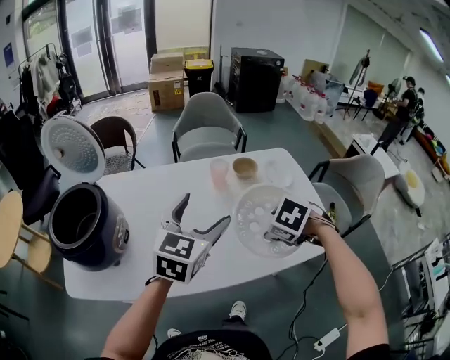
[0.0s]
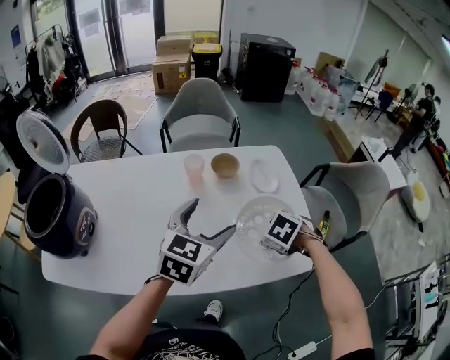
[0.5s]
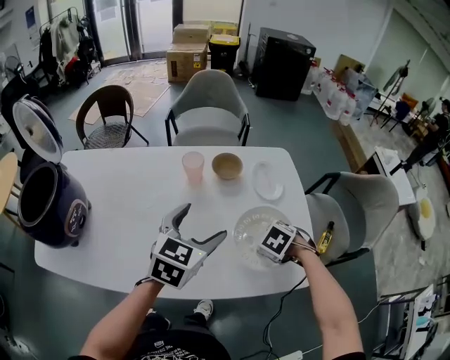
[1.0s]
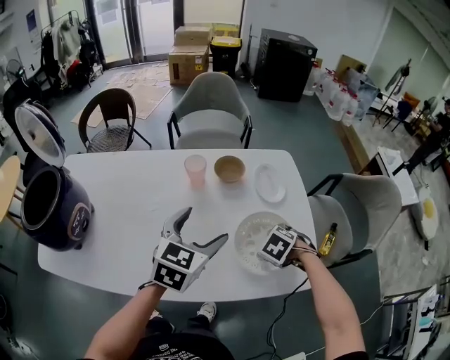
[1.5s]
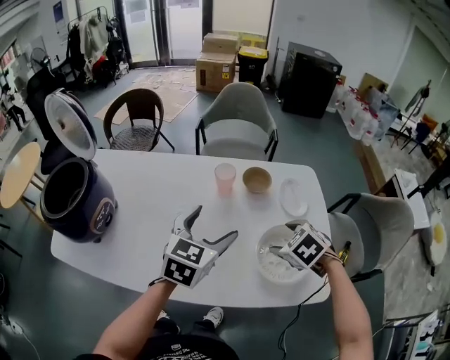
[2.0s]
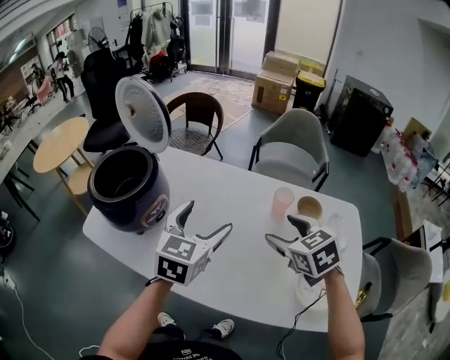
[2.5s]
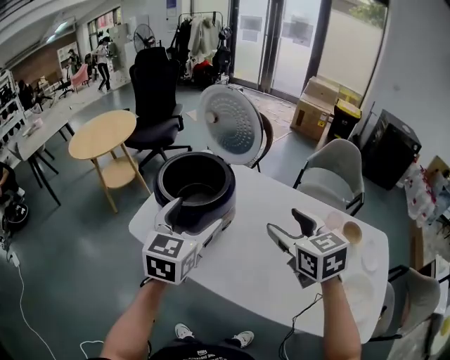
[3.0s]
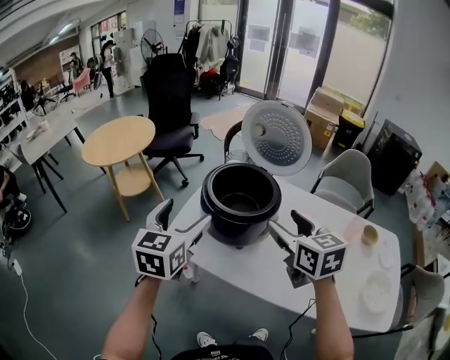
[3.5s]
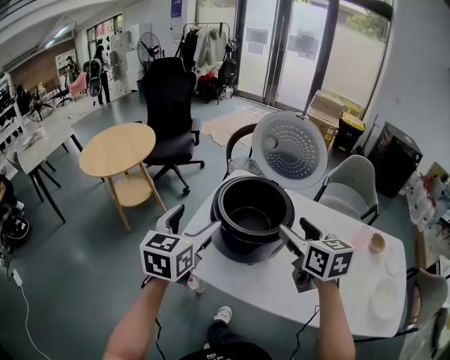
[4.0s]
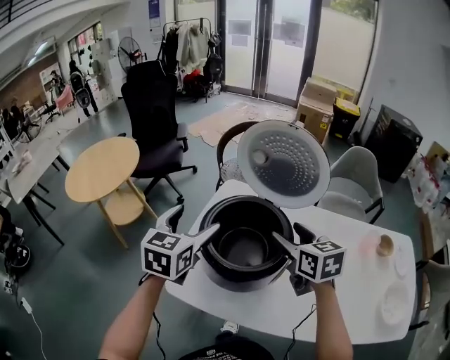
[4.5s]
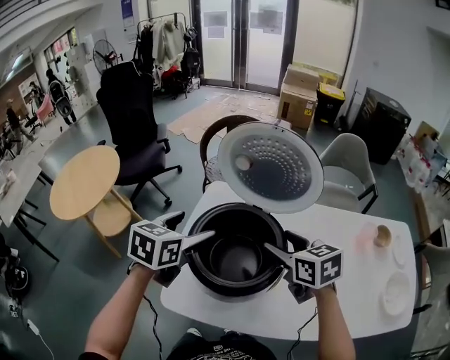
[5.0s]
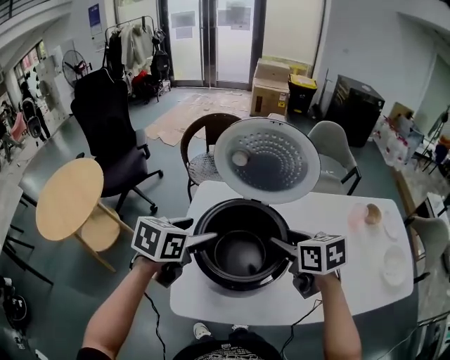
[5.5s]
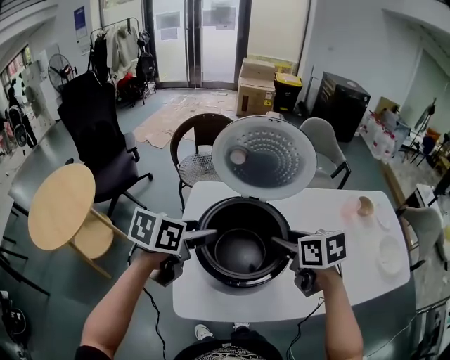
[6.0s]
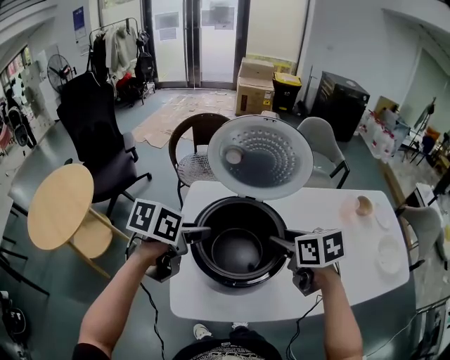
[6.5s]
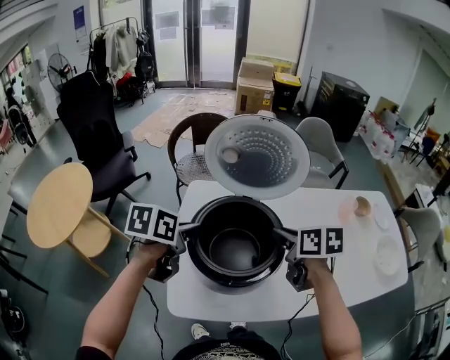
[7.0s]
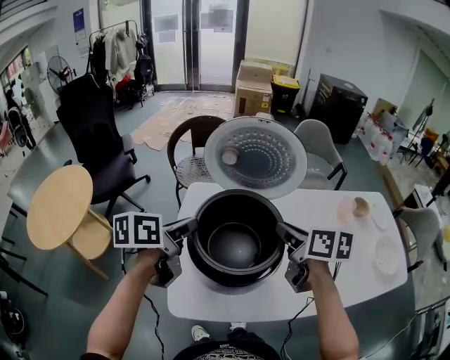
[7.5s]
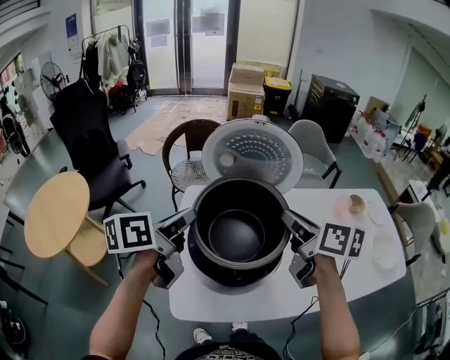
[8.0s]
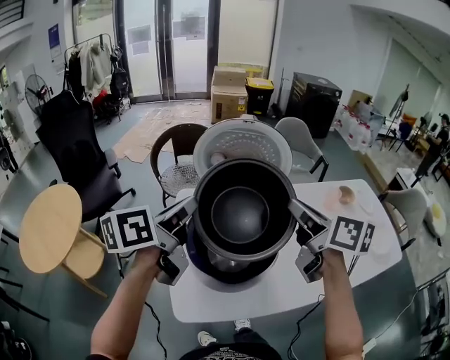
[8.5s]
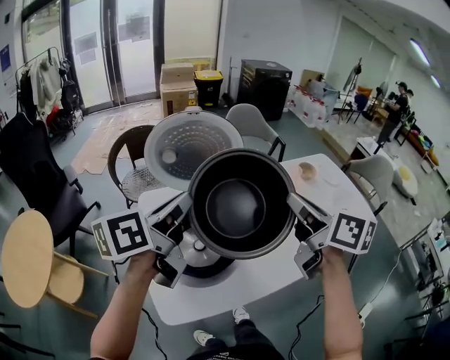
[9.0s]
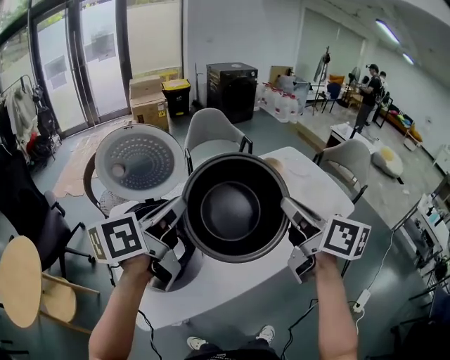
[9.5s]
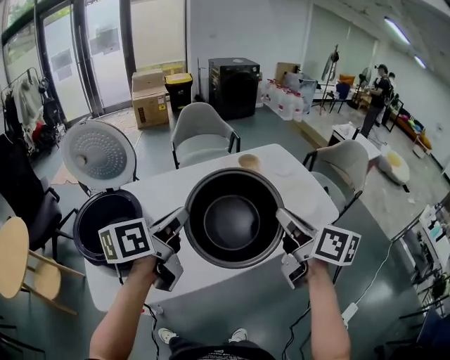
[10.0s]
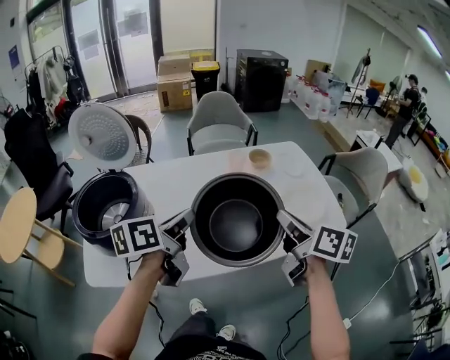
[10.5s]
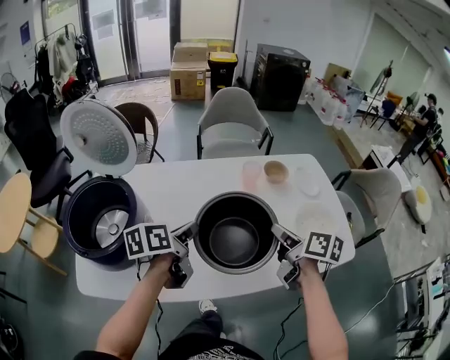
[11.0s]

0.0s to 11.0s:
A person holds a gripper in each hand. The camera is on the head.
0.0s to 2.0s: The left gripper changes place by approximately 25 cm. Meanwhile the right gripper changes place by roughly 25 cm.
2.0s to 3.5s: The pair of grippers is taken some 80 cm. The left gripper turns by some 40 degrees; the right gripper tips its fingers upward by roughly 50 degrees.
3.5s to 5.5s: The left gripper moves about 35 cm, and rotates roughly 50 degrees, while the right gripper moves about 30 cm, and turns by approximately 30 degrees.
5.5s to 7.5s: The left gripper turns by roughly 30 degrees, and closes up; the right gripper rotates some 20 degrees.
7.5s to 9.0s: The right gripper moves upward, backward and to the right, roughly 15 cm, and turns by approximately 30 degrees. Meanwhile the left gripper shifts about 15 cm upward and to the right, and turns by some 20 degrees.
9.0s to 11.0s: The pair of grippers is taken to the right, roughly 50 cm. The grippers both shift downward by approximately 25 cm. The left gripper rotates roughly 30 degrees. The right gripper rotates roughly 20 degrees.

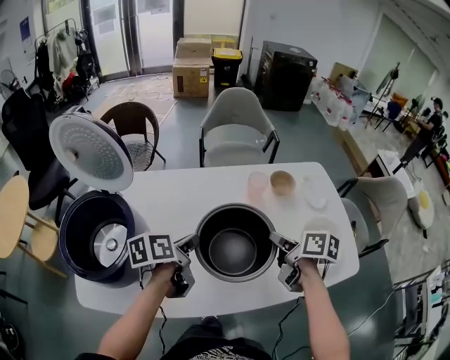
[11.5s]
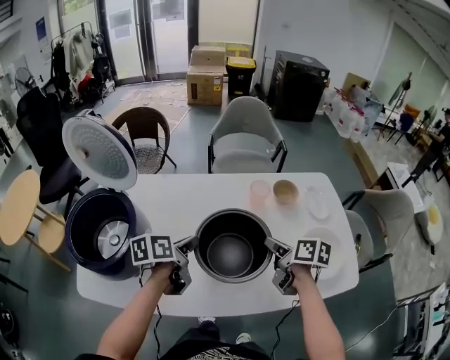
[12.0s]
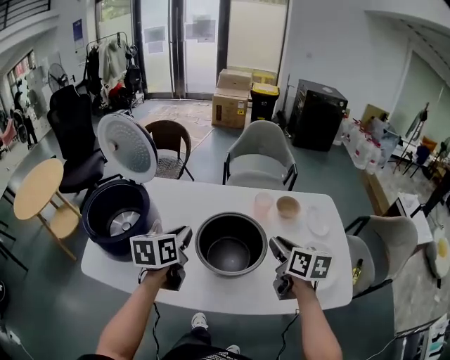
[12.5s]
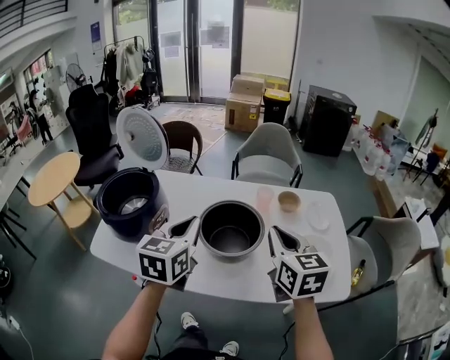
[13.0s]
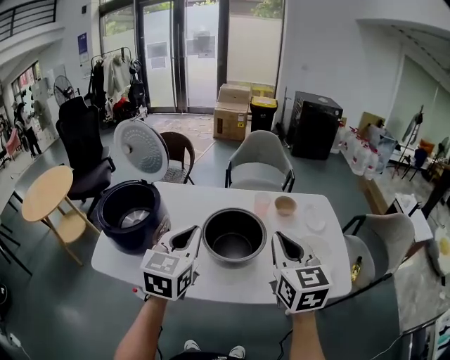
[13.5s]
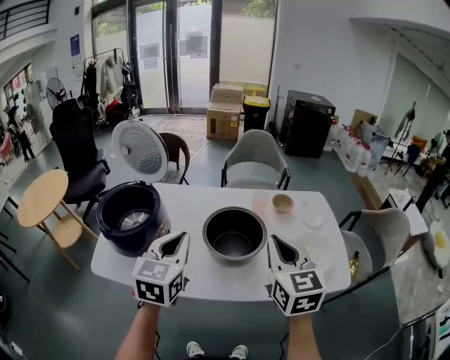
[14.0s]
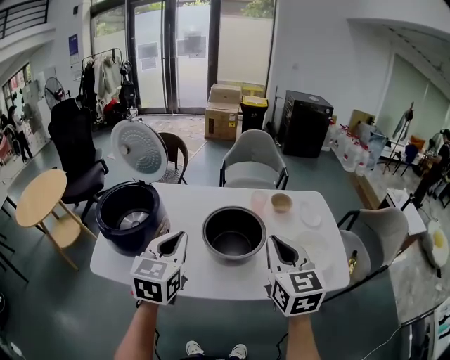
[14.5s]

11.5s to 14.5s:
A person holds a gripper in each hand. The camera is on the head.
11.5s to 13.0s: The left gripper moves backward, upward and to the right, about 30 cm, and rotates roughly 50 degrees. Meanwhile the right gripper moves backward and upward, roughly 25 cm, and rolls counterclockwise, seen from behind, by roughly 50 degrees.
13.0s to 14.5s: The right gripper goes some 10 cm to the left and backward. The left gripper is displaced to the left by some 10 cm.

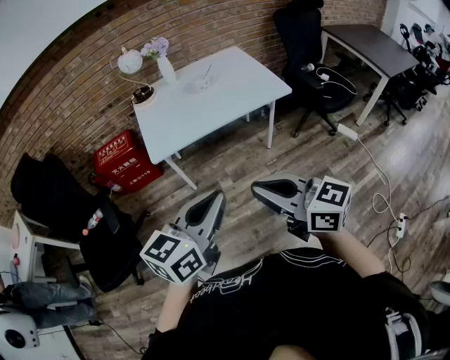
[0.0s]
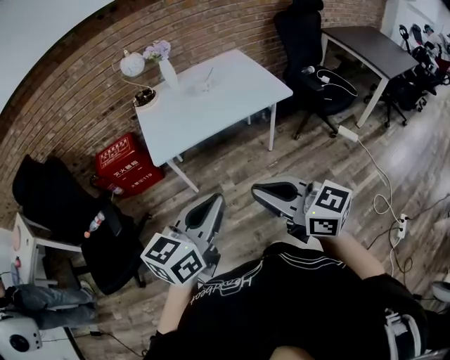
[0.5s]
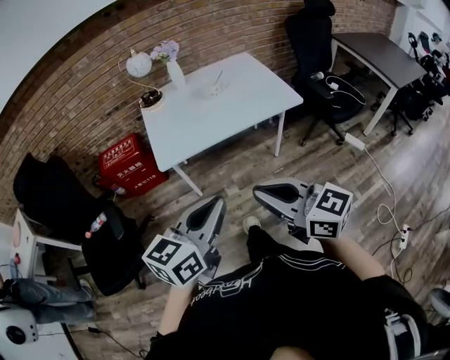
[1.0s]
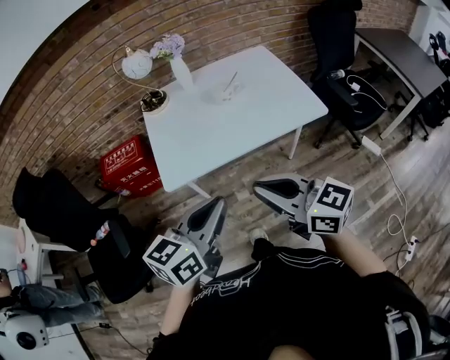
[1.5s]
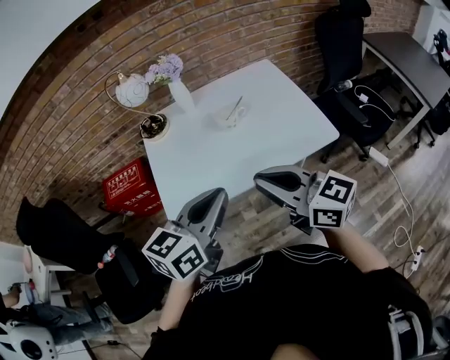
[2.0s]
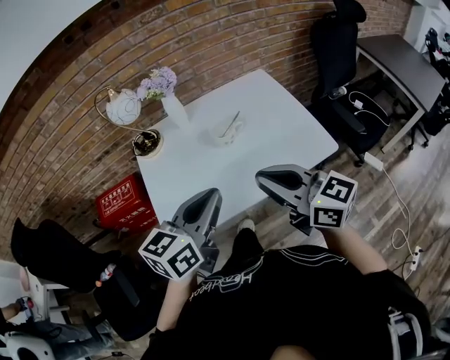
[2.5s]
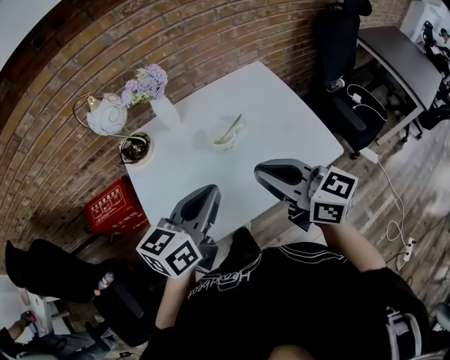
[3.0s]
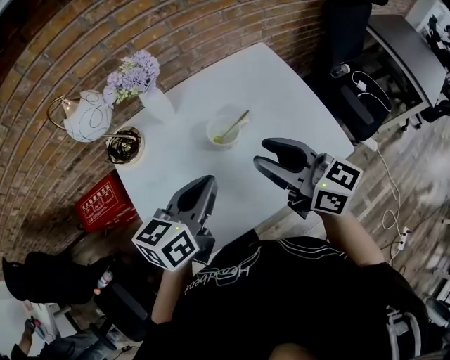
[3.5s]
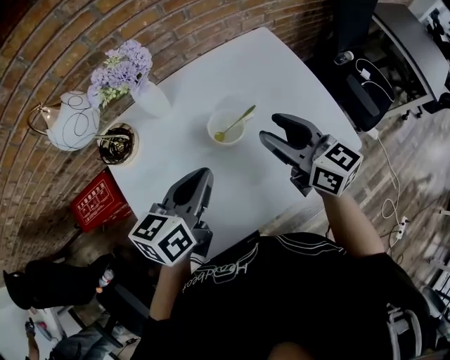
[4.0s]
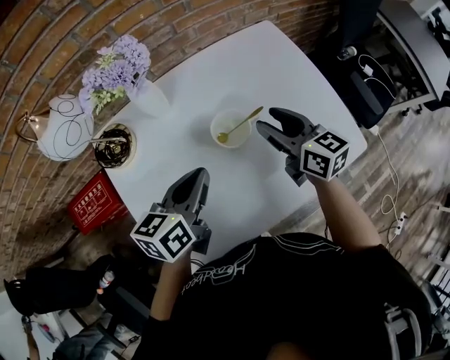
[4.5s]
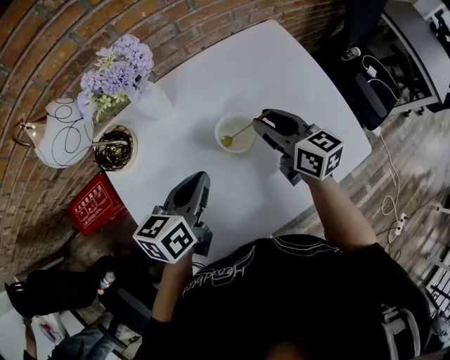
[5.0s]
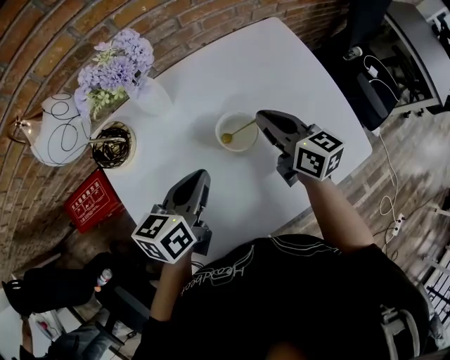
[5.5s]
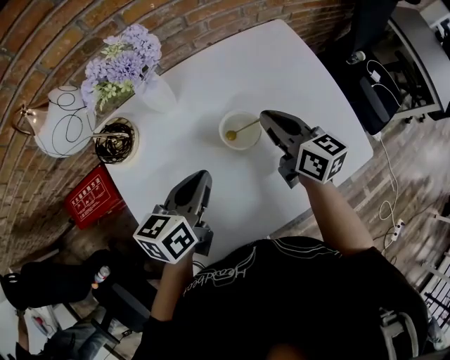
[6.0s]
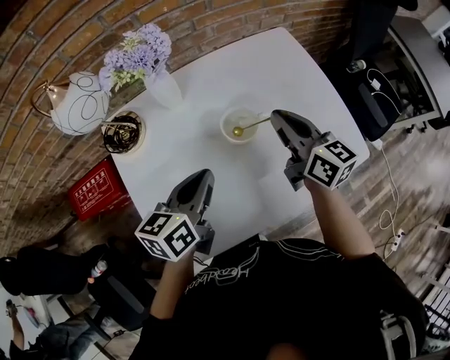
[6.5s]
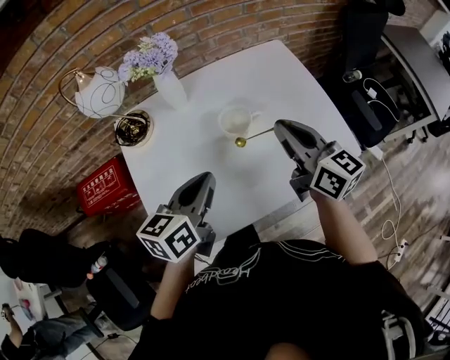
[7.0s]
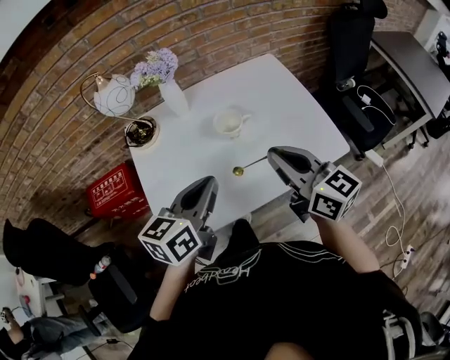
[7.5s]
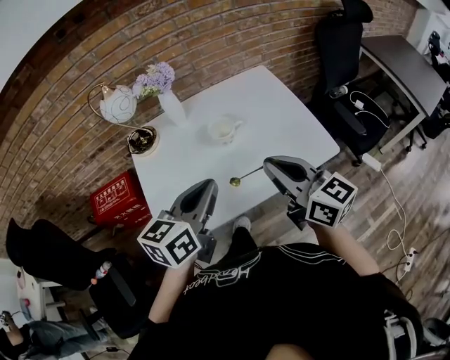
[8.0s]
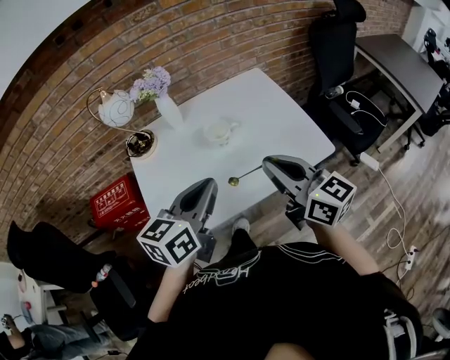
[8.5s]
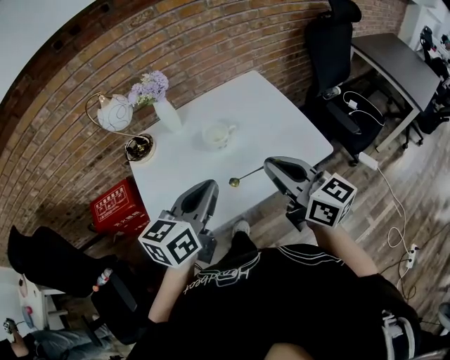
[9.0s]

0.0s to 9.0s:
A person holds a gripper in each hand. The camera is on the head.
0.0s to 2.0s: The two grippers go some 35 cm forward.
2.0s to 4.5s: Both grippers move forward and downward, roughly 40 cm. The right gripper swivels roughly 30 degrees, and opens, while the left gripper turns by about 20 degrees.
4.5s to 7.0s: The left gripper heads backward and upward, covering roughly 10 cm. Meanwhile the right gripper travels upward and backward by about 15 cm, and closes its fingers.
7.0s to 9.0s: The left gripper travels backward, upward and to the right by about 15 cm. Meanwhile the right gripper moves backward, some 20 cm.

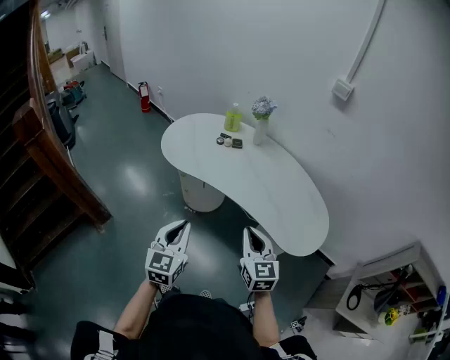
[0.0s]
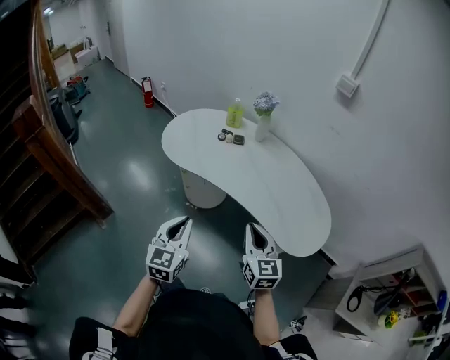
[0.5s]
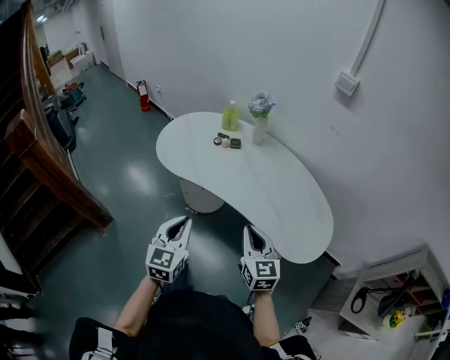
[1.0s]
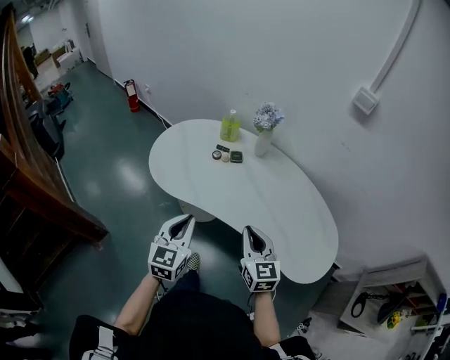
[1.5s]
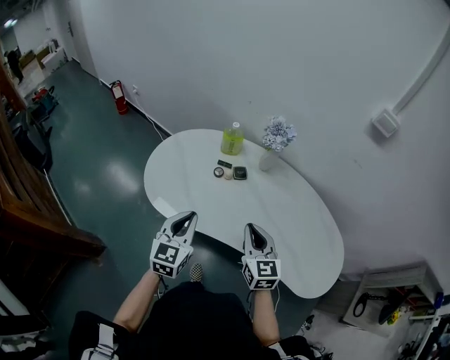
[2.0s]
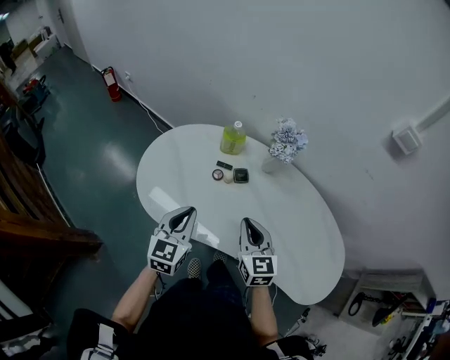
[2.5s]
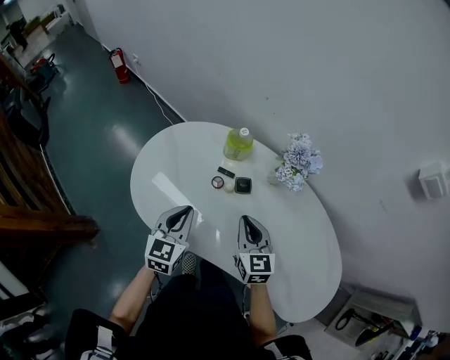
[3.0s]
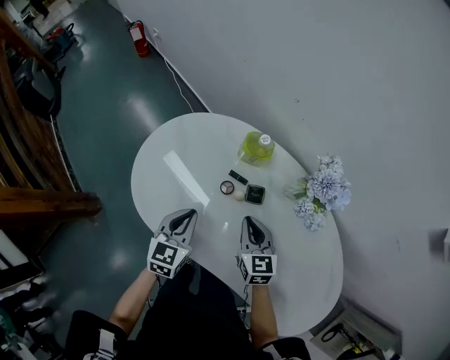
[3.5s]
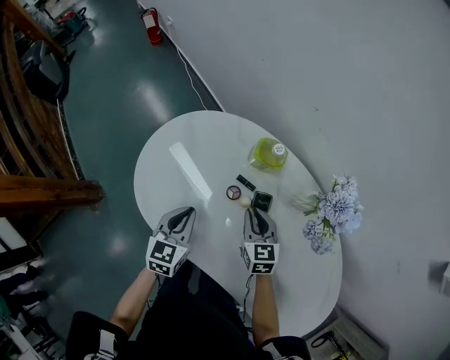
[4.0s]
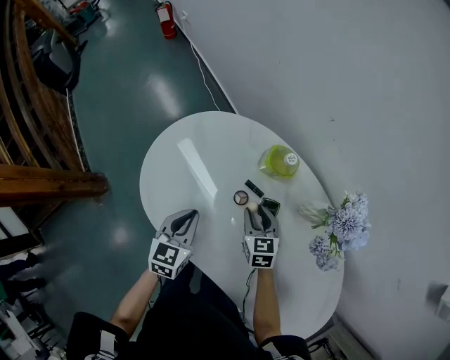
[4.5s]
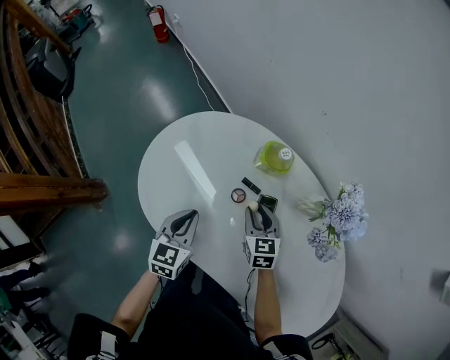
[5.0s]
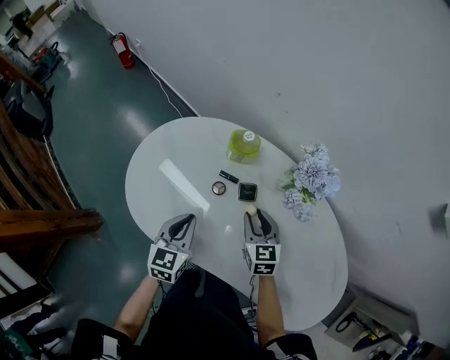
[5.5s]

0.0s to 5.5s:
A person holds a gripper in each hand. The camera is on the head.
0.0s to 2.0s: Both grippers move forward, about 35 cm.
2.0s to 3.5s: Both grippers travel together forward and downward, approximately 25 cm.
3.5s to 5.5s: The right gripper travels downward and back again, approximately 10 cm each way, and opens its fingers.
